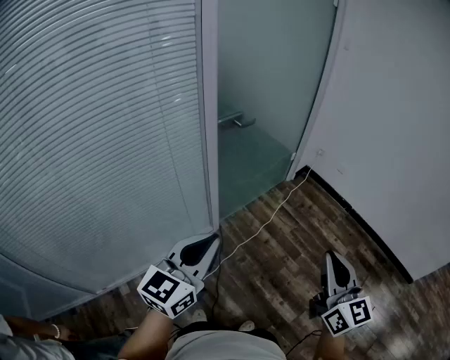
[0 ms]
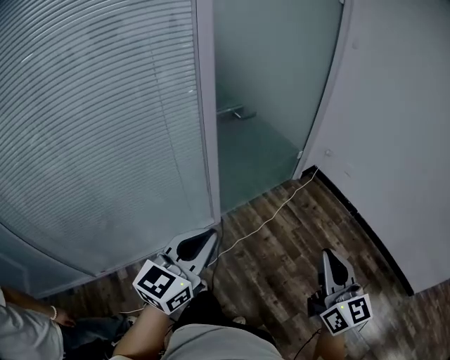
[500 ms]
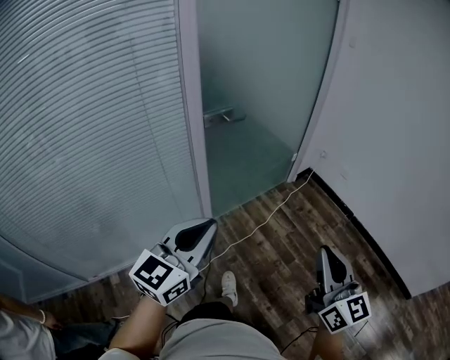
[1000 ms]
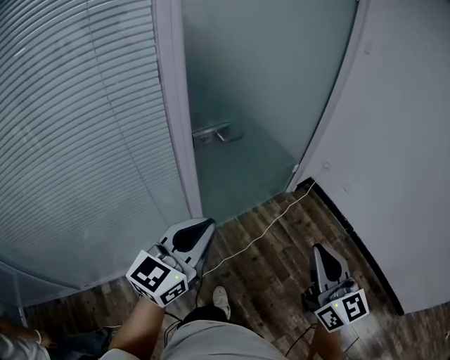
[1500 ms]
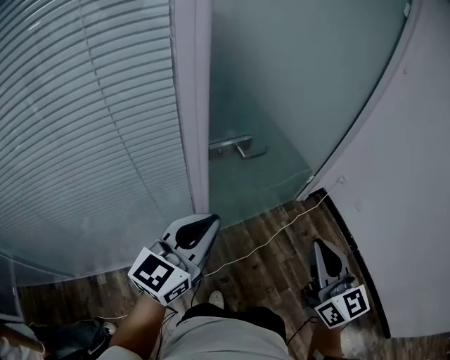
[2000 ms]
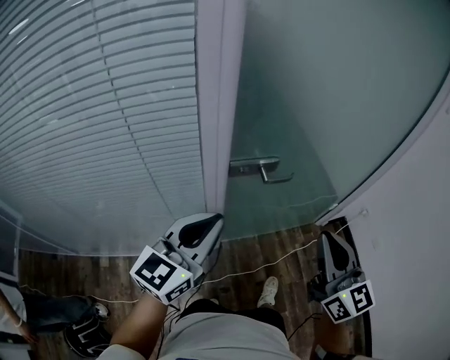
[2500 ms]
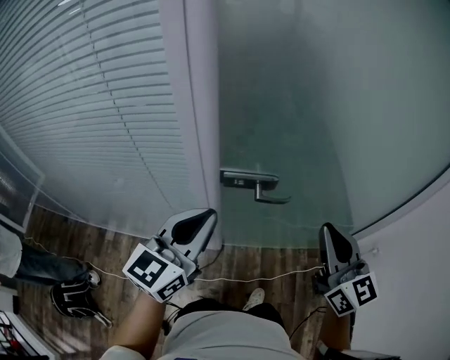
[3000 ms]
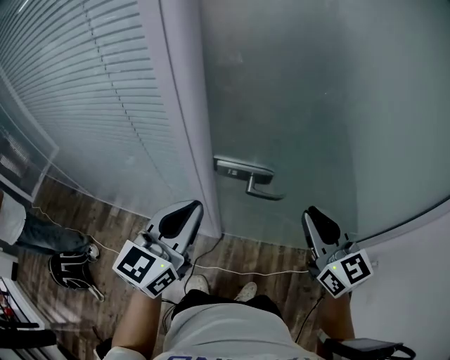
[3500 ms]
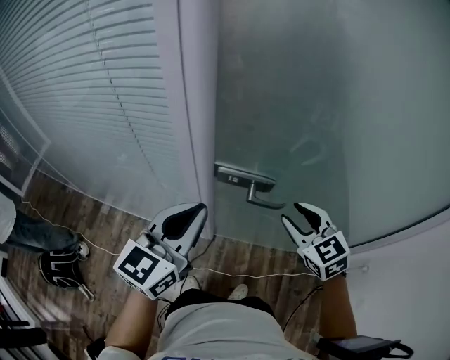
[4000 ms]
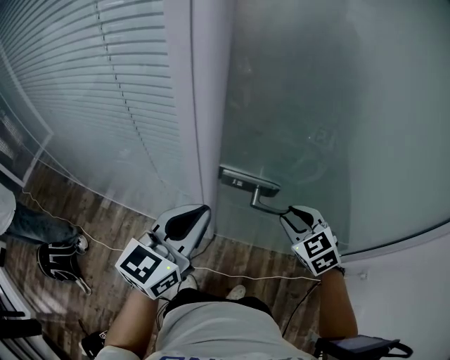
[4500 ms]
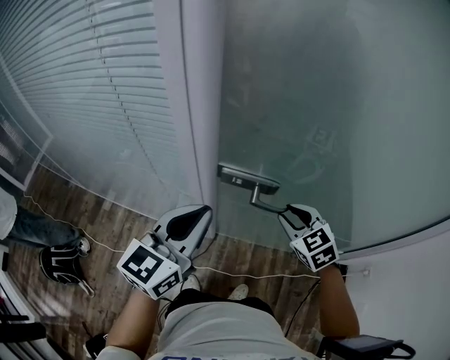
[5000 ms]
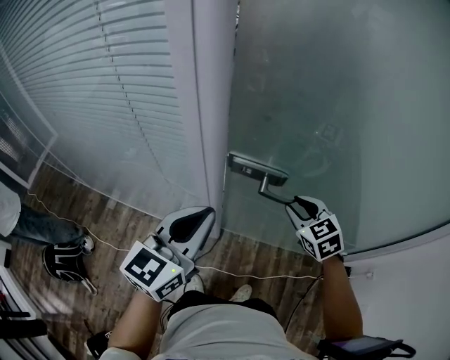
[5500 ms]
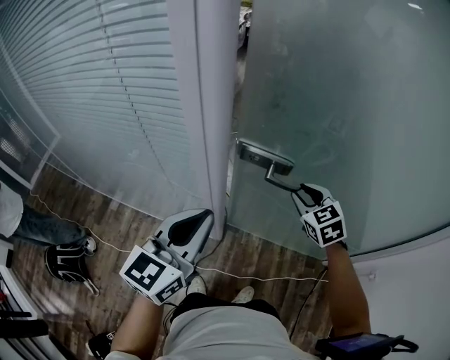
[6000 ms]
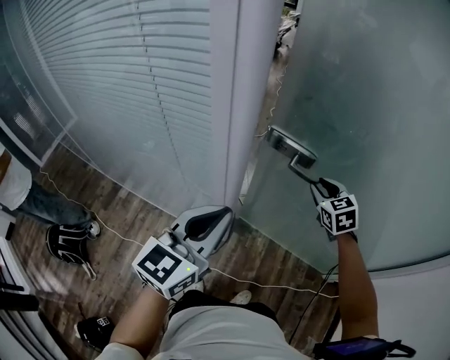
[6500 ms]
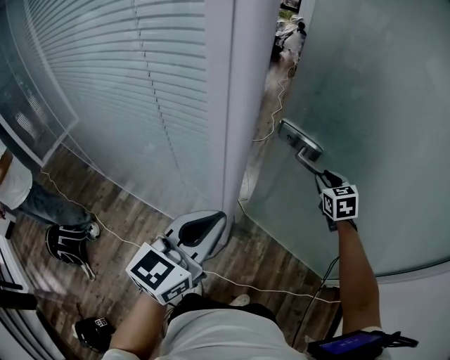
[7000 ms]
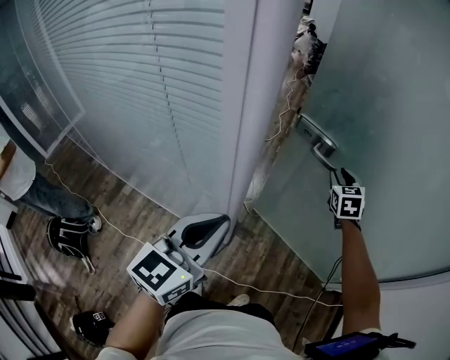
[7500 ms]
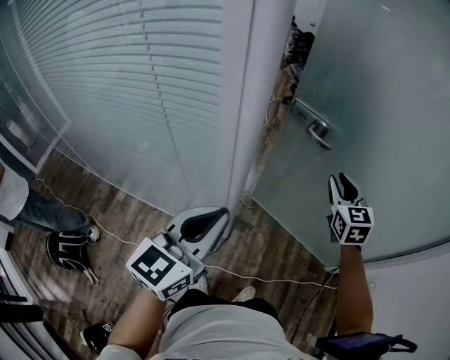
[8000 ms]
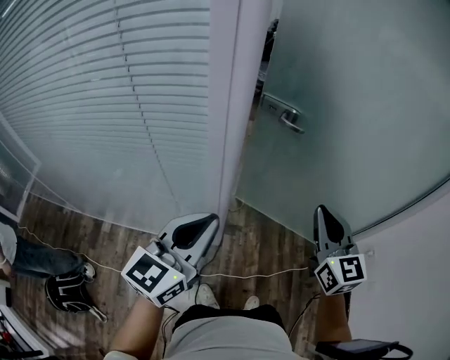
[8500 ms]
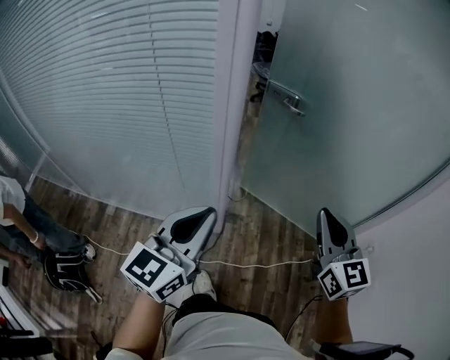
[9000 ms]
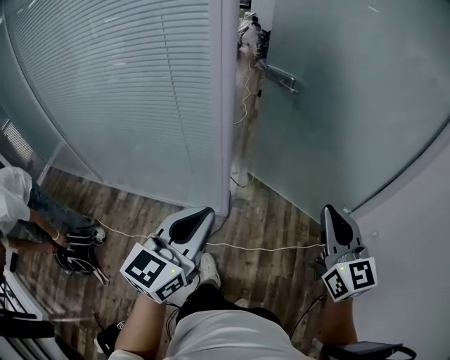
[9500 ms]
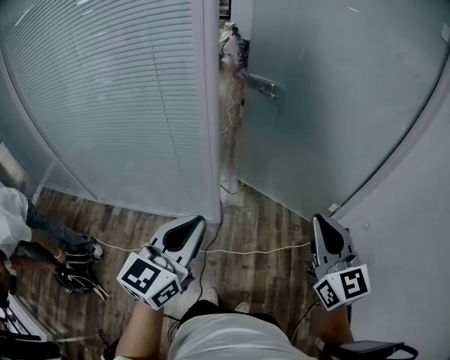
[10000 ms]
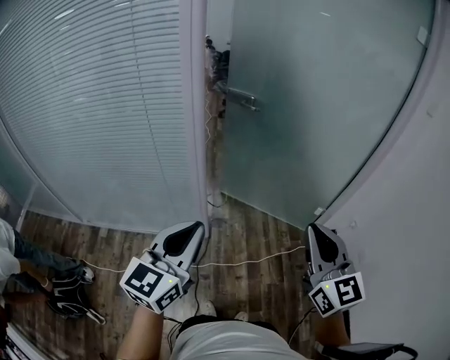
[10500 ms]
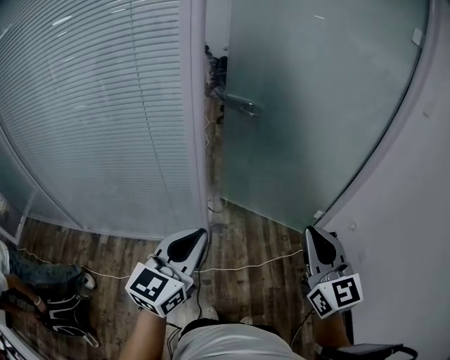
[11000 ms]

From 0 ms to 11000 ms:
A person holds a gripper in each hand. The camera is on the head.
From 0 ms to 2000 ms: Both grippers move forward, roughly 30 cm. The right gripper changes its angle by some 20 degrees.
From 2000 ms to 3500 ms: The left gripper shifts by some 10 cm, and rotates approximately 40 degrees; the right gripper shifts by some 30 cm, and swivels about 40 degrees.
From 3500 ms to 5500 ms: The right gripper is displaced downward and forward by roughly 15 cm, and tips its fingers downward by some 30 degrees.
From 5500 ms to 7500 ms: The right gripper is displaced forward by some 20 cm, and rotates roughly 20 degrees.
From 7500 ms to 9000 ms: The right gripper is displaced backward by approximately 40 cm, turns by some 30 degrees, and closes its fingers. Meanwhile the left gripper heads backward, covering about 10 cm.
From 9000 ms to 11000 ms: The two grippers go approximately 20 cm backward.

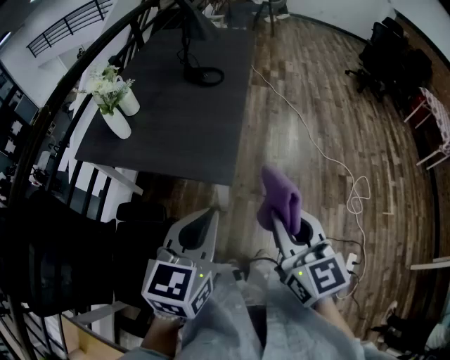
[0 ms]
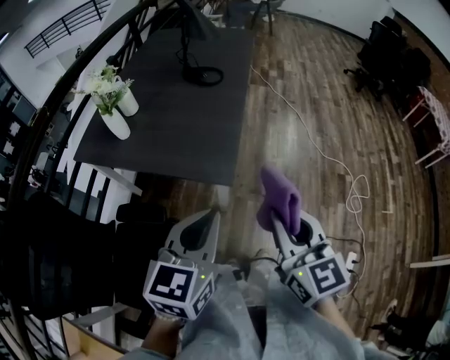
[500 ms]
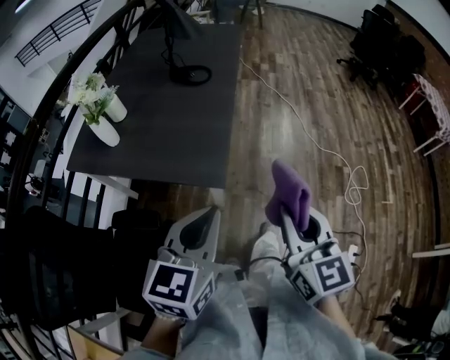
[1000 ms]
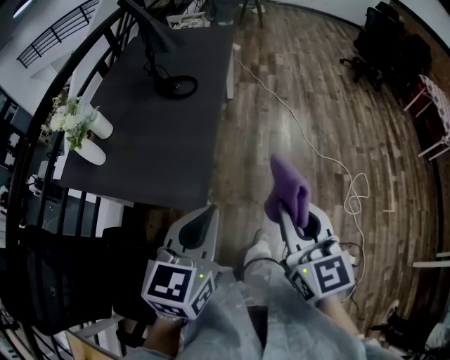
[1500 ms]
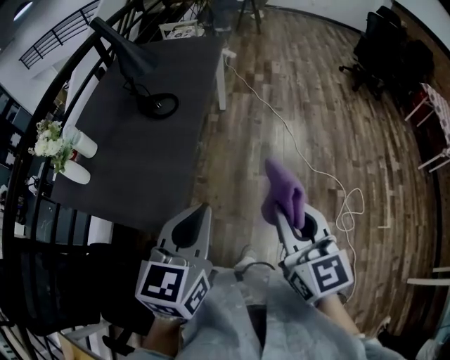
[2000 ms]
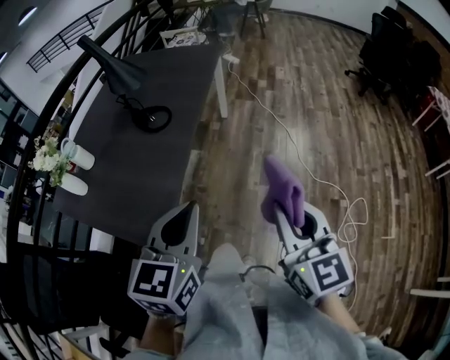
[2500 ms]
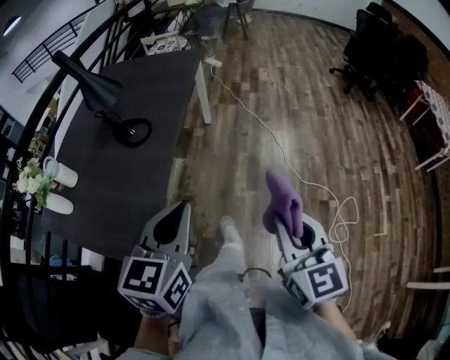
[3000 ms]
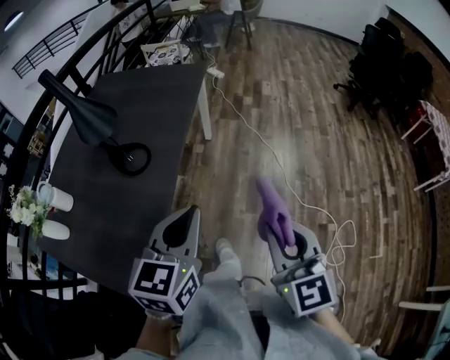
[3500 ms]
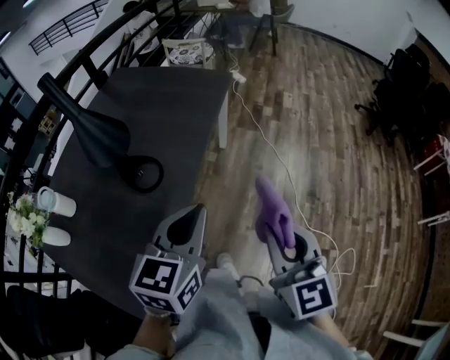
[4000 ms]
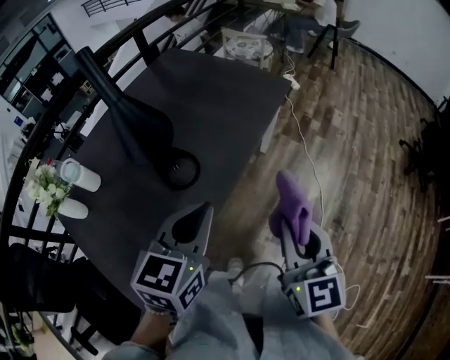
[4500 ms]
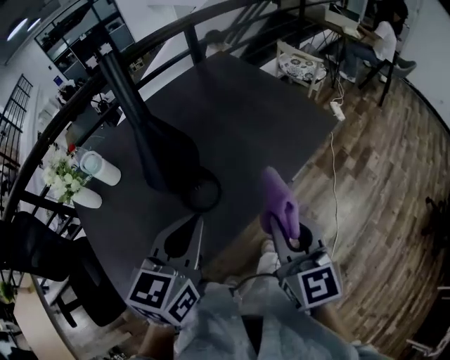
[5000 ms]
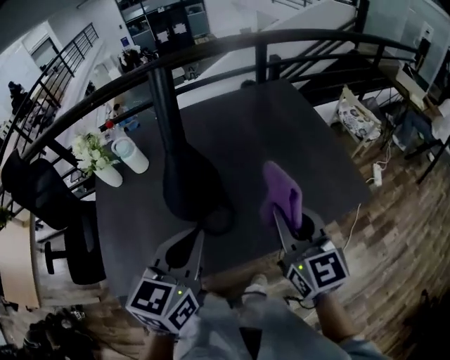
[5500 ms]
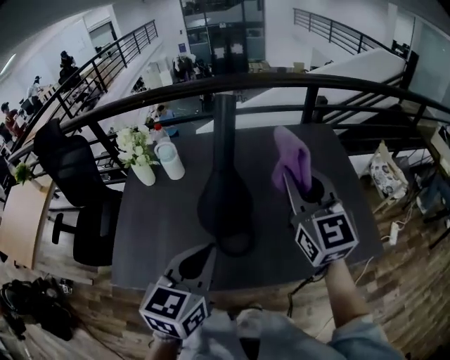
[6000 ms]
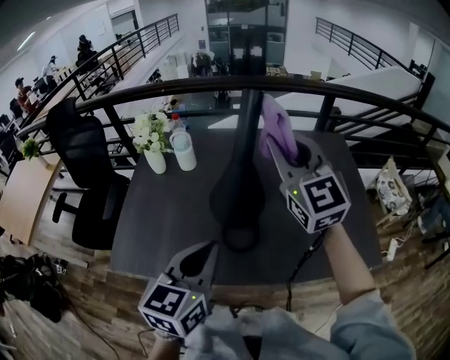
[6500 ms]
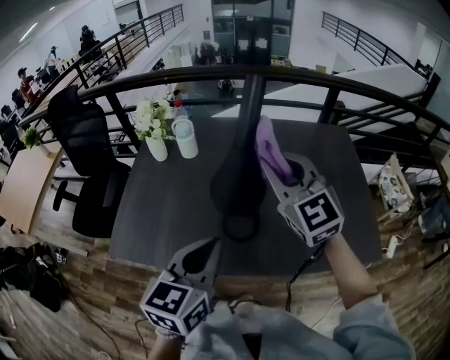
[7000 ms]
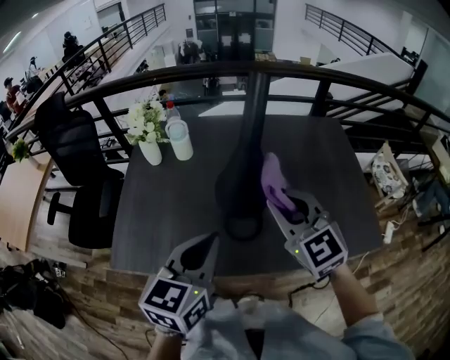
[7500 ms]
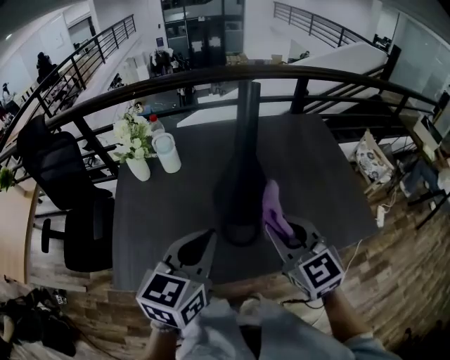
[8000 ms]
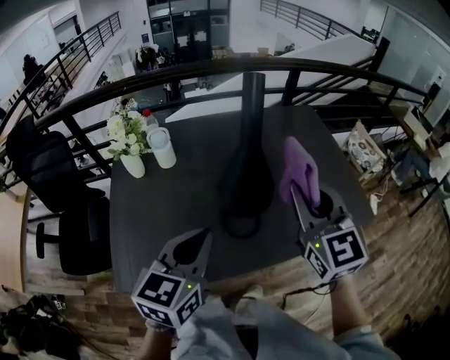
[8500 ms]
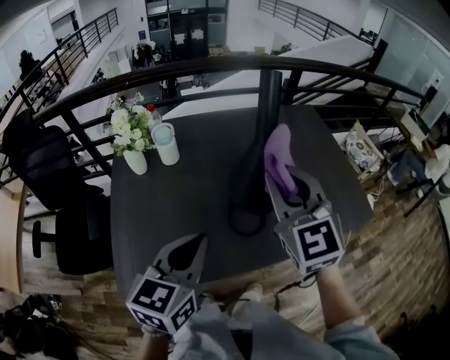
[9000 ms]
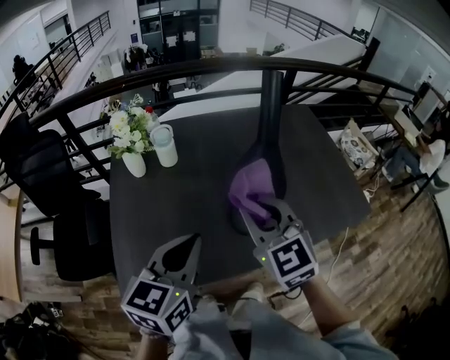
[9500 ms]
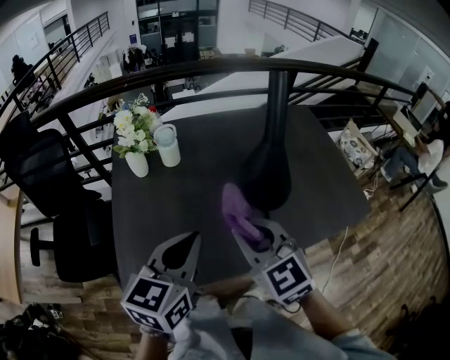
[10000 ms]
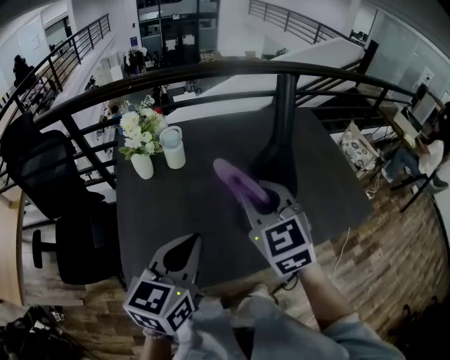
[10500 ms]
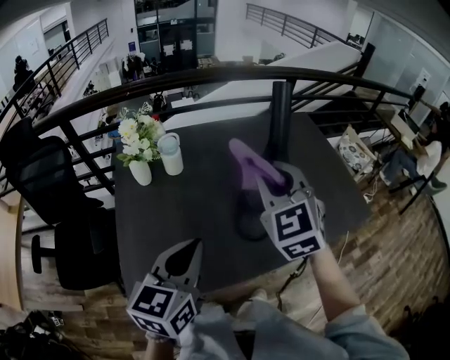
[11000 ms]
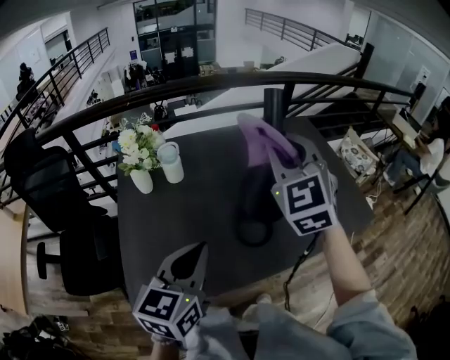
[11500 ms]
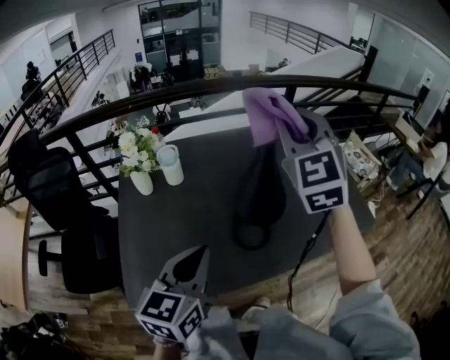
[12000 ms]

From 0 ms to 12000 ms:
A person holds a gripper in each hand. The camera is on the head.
From 0 ms to 2000 ms: The right gripper moves to the right and forward, roughly 30 cm; the left gripper travels forward and to the right by approximately 25 cm.
From 2000 ms to 4000 ms: The two grippers go approximately 35 cm forward.
From 4000 ms to 6000 ms: The left gripper ends up approximately 20 cm from where it was, and rotates roughly 70 degrees, while the right gripper moves approximately 50 cm, and turns by some 70 degrees.
From 6000 ms to 8000 ms: The left gripper moves to the left, about 5 cm. Meanwhile the right gripper is displaced to the left, downward and backward by about 20 cm, and swivels some 20 degrees.
From 8000 ms to 10000 ms: The two grippers go roughly 15 cm to the left.
From 10000 ms to 12000 ms: The right gripper heads upward, forward and to the right, covering approximately 30 cm, and rotates roughly 40 degrees.

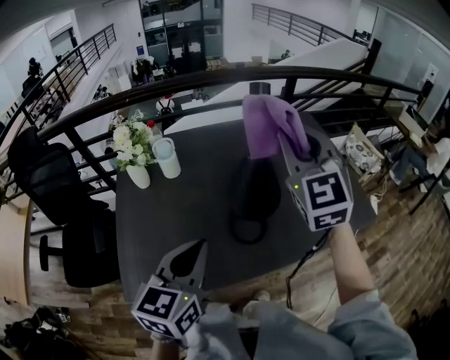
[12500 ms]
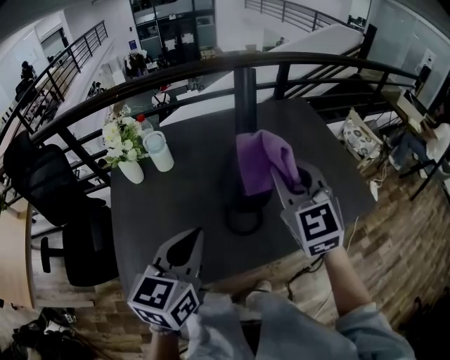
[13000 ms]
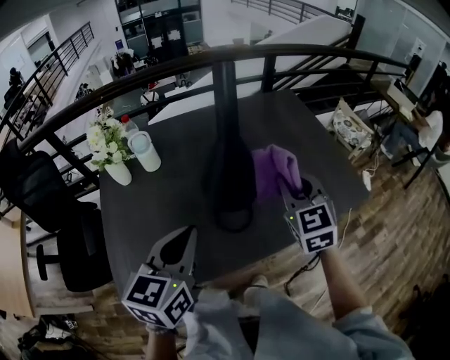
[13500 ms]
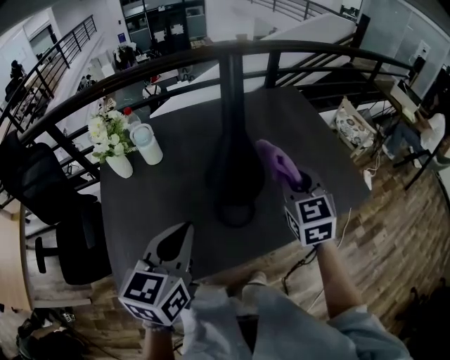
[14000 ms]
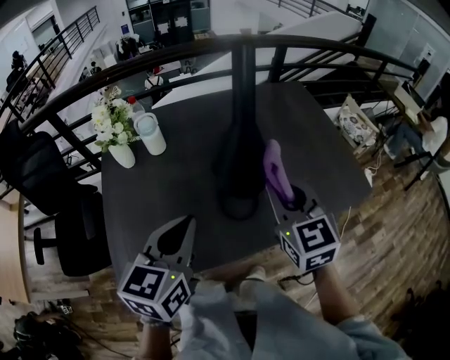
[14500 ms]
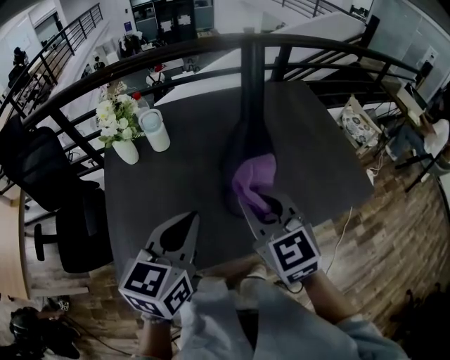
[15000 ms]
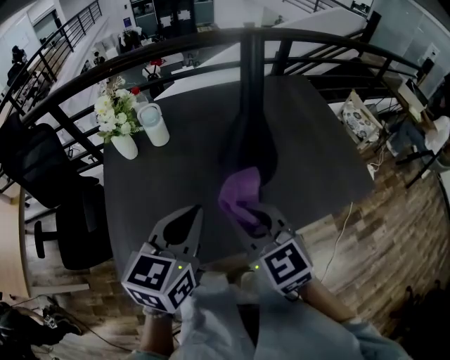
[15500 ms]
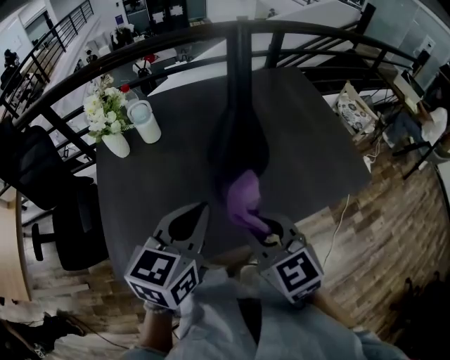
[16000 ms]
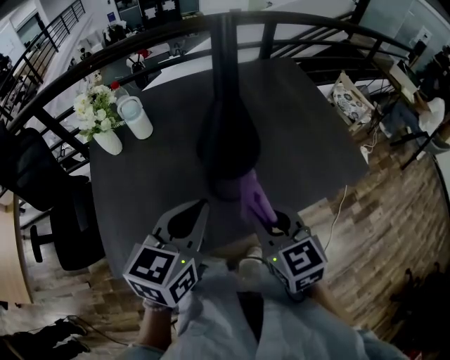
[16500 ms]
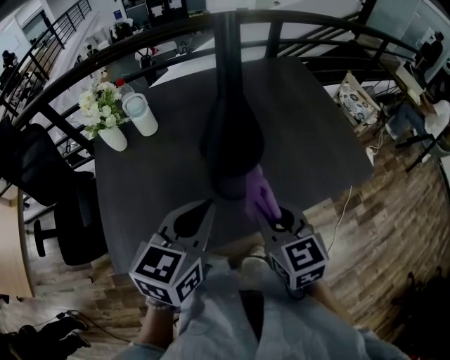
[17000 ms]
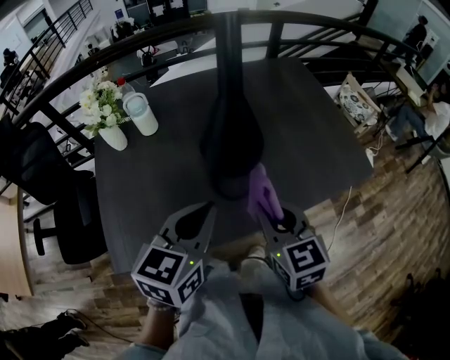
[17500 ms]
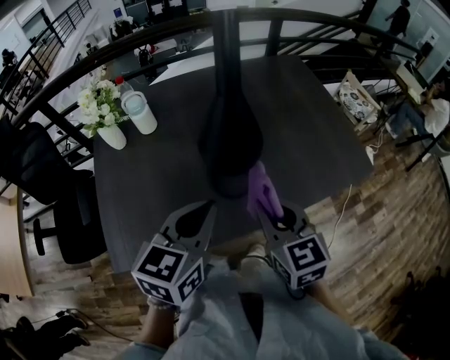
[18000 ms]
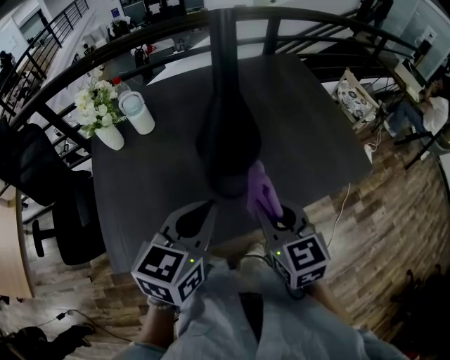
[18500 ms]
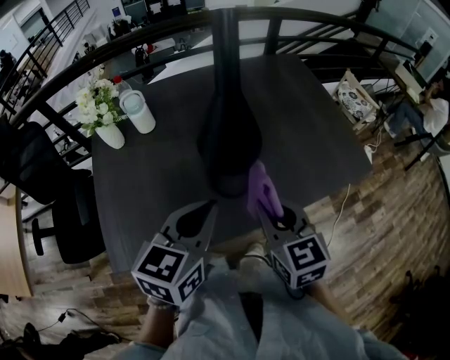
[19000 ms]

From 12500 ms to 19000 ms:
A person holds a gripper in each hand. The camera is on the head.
From 12500 ms to 14500 ms: The right gripper moves downward and backward, about 20 cm, and changes its angle by some 30 degrees.
From 14500 ms to 17000 ms: The left gripper moves to the right, approximately 5 cm, while the right gripper moves backward and downward, some 10 cm, and travels to the left and back again, some 10 cm each way.
From 17000 ms to 19000 ms: Neither gripper changes place.
